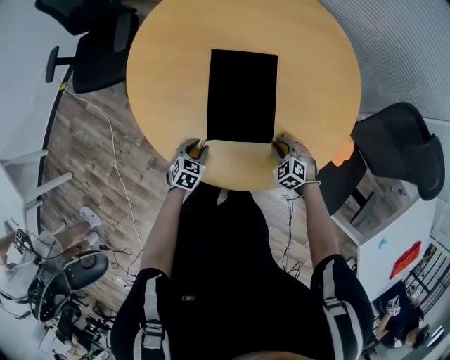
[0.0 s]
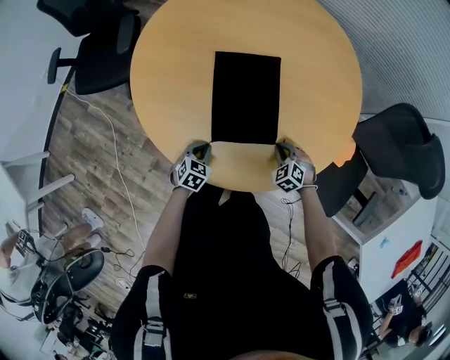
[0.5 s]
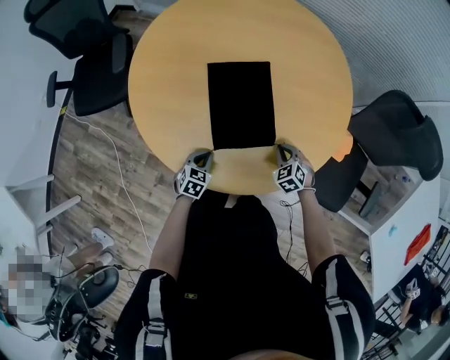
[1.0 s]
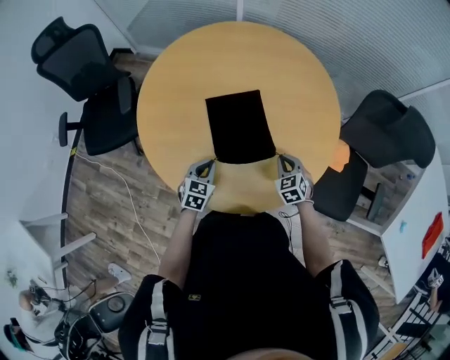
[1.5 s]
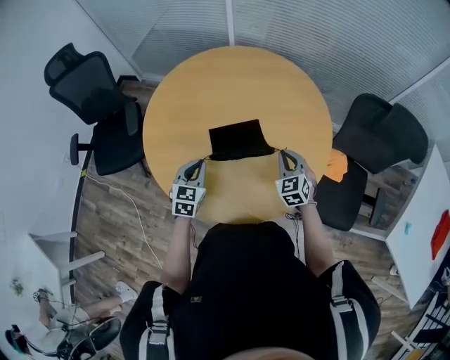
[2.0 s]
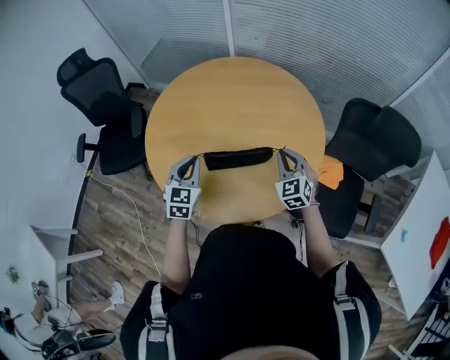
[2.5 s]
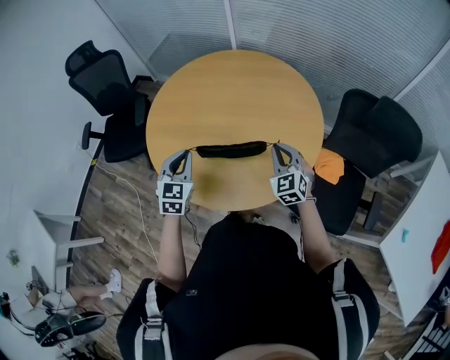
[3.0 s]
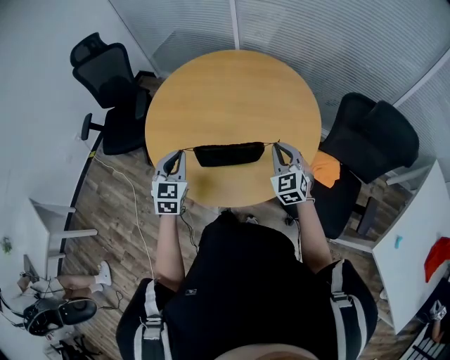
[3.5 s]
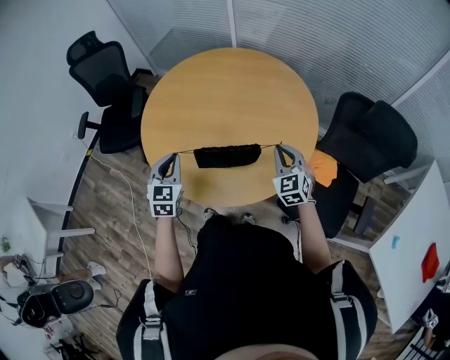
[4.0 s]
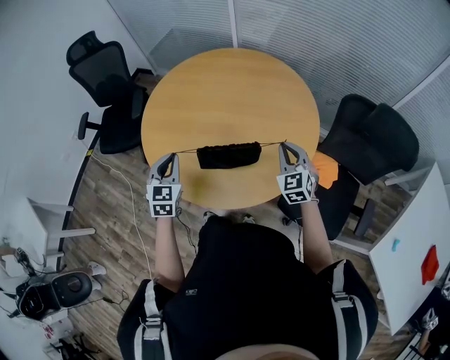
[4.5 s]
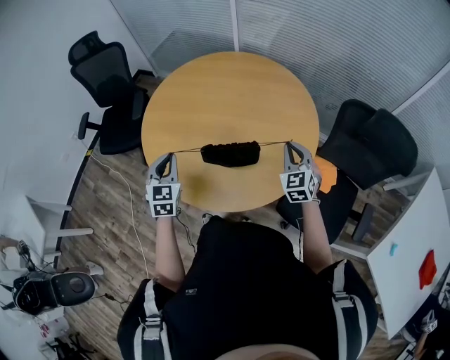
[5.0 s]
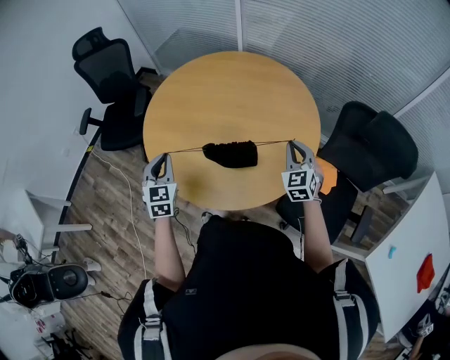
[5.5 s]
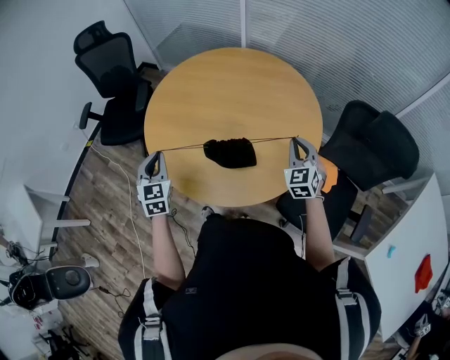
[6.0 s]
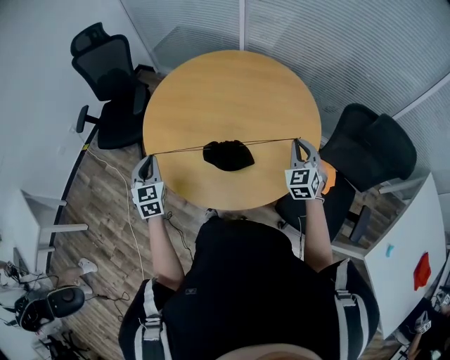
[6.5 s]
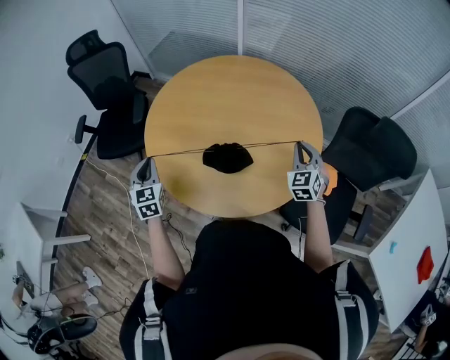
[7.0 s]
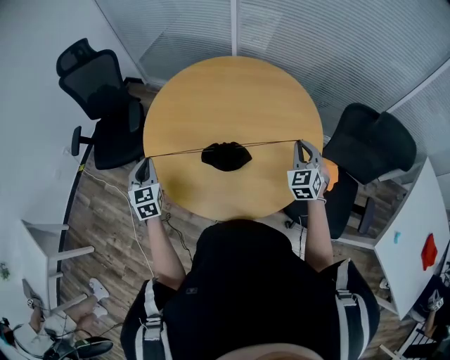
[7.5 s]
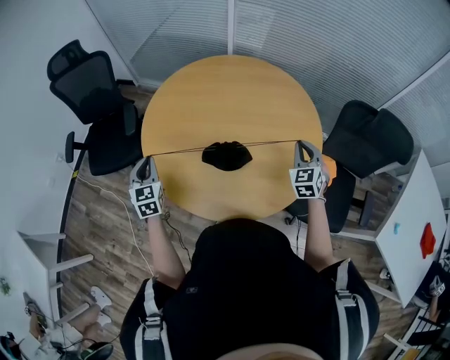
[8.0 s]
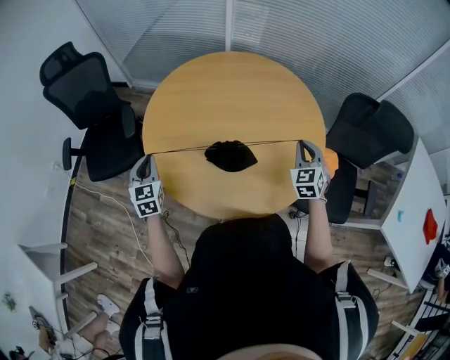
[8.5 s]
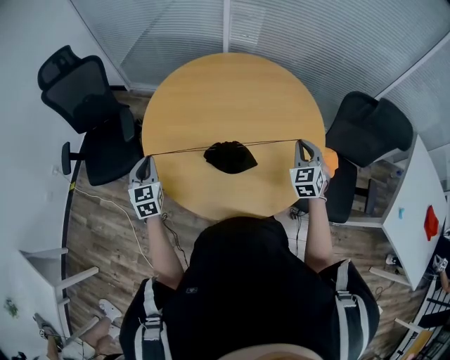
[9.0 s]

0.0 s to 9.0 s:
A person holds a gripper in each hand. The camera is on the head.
0.0 to 2.0 s: The left gripper travels upward and forward by about 25 cm, changes its angle by roughly 30 degrees, and closes up; the right gripper shifts about 20 cm upward, and swivels roughly 50 degrees.
2.0 to 4.5 s: The right gripper travels to the right and upward by some 10 cm, while the left gripper heads upward and backward, covering some 15 cm, and turns by approximately 20 degrees.
4.5 to 7.0 s: The left gripper shifts some 15 cm to the left.
7.0 to 9.0 s: The left gripper heads forward and to the left, covering some 10 cm; the right gripper goes about 5 cm to the left.

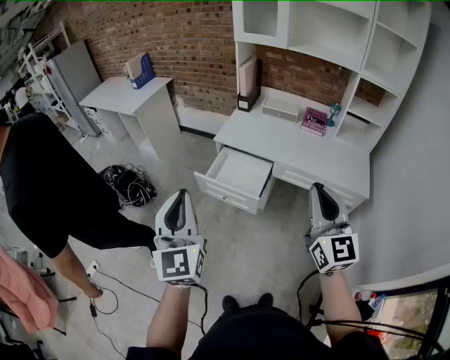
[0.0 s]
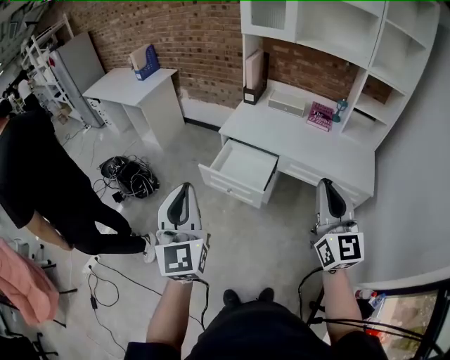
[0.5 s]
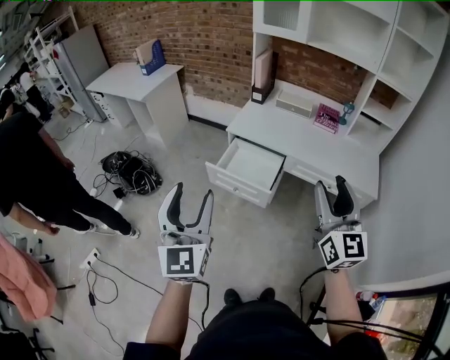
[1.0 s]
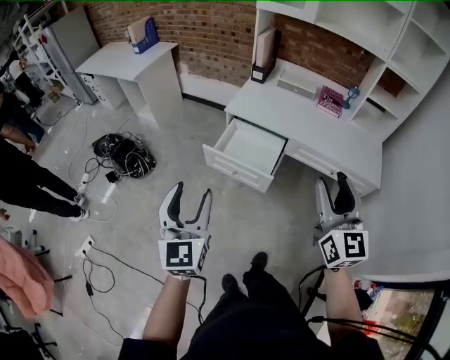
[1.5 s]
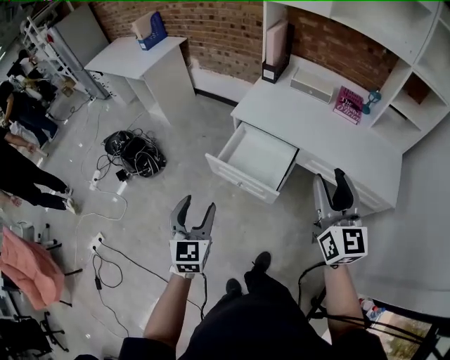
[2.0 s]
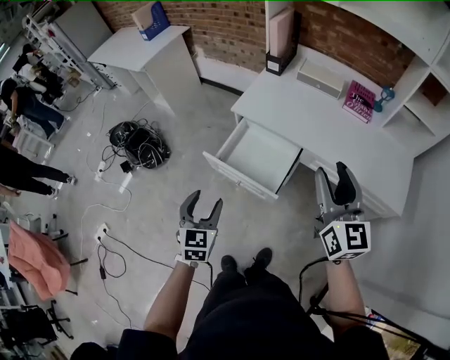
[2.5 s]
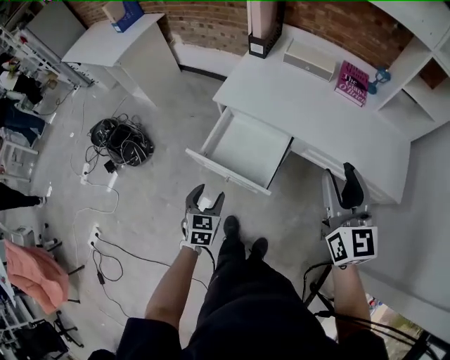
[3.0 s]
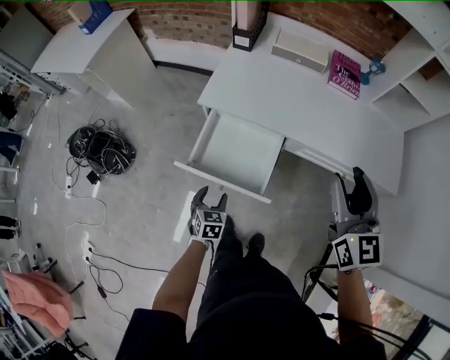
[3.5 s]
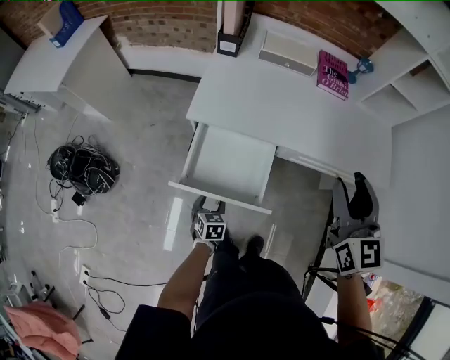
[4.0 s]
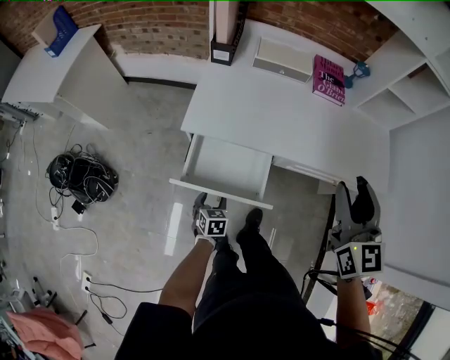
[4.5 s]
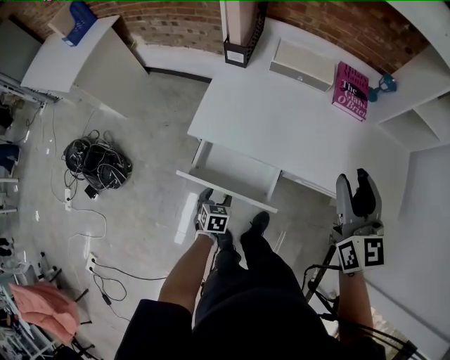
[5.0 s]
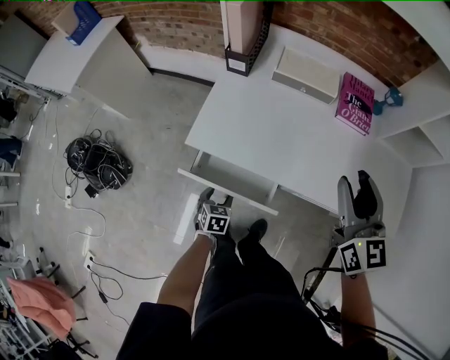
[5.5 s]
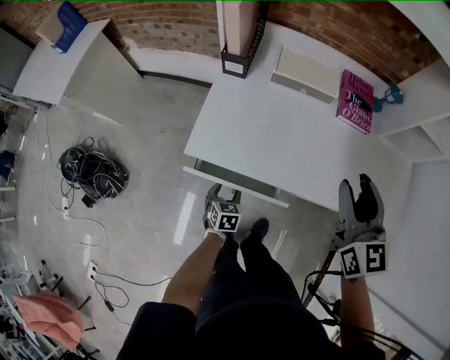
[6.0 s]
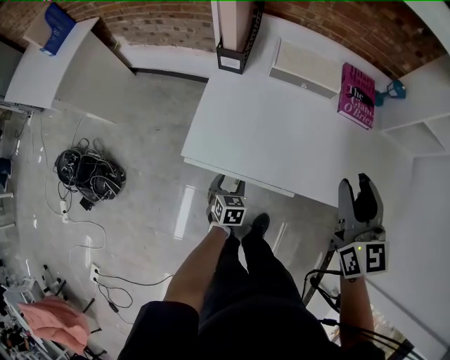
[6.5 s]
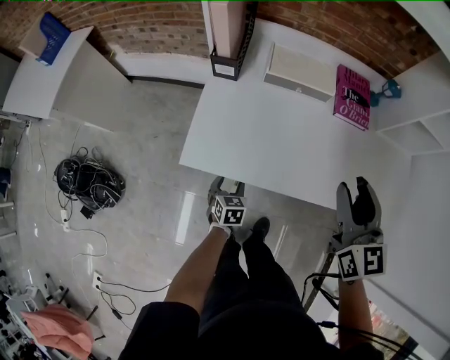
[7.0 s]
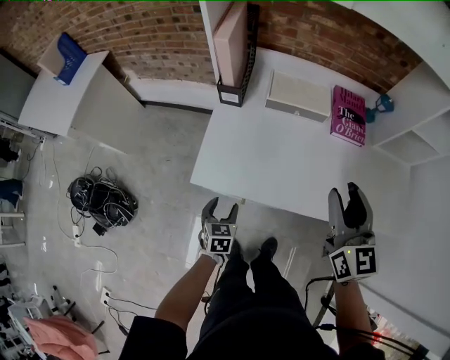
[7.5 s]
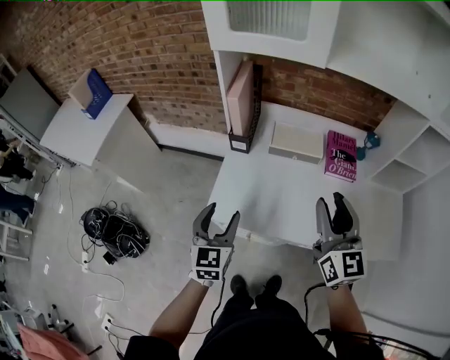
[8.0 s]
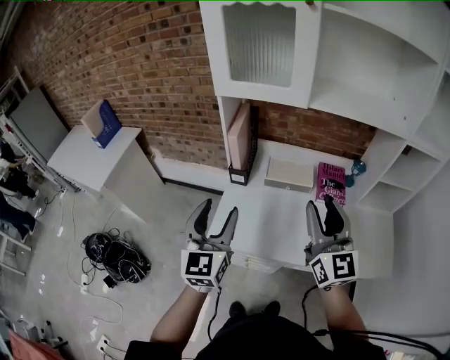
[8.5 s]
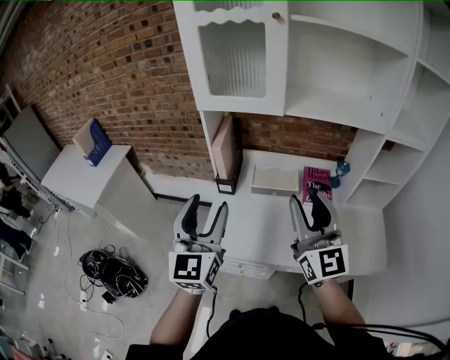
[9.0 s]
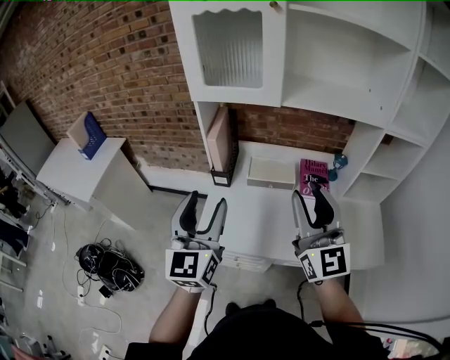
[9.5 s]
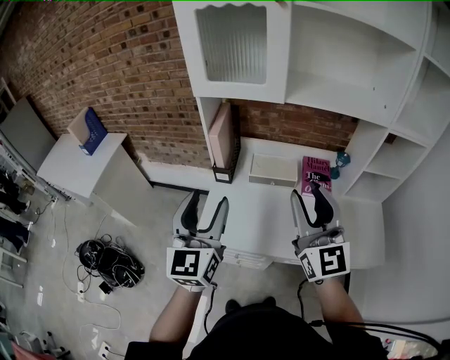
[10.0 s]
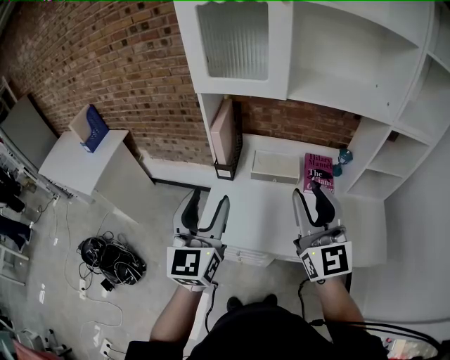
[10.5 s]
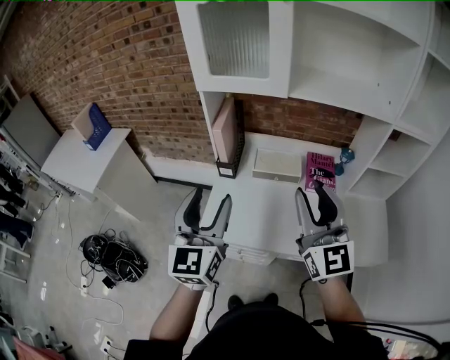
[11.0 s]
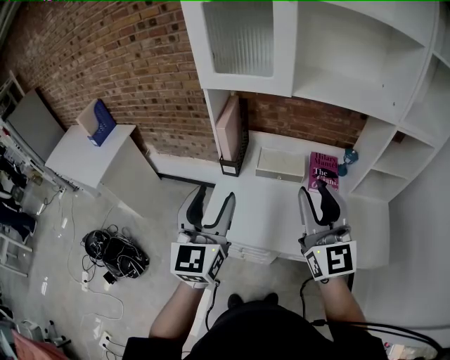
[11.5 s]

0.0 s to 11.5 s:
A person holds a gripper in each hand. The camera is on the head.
0.0 to 2.0 s: The left gripper goes some 25 cm downward and forward, changes its angle by roughly 20 degrees, and opens its fingers; the right gripper moves forward and downward, some 20 cm, and opens its fingers.
2.0 to 4.0 s: The right gripper is displaced forward and downward by about 20 cm, and turns by approximately 20 degrees; the left gripper moves downward and forward, approximately 40 cm, and points its fingers about 40 degrees further downward.
4.0 to 6.0 s: Both grippers travel together forward, roughly 20 cm.
6.0 to 7.5 s: The left gripper goes some 10 cm upward.
7.5 to 9.5 s: The right gripper travels upward by roughly 25 cm, and changes its angle by about 30 degrees; the left gripper shifts about 50 cm upward, and tips its fingers upward by about 50 degrees.
9.5 to 11.5 s: The grippers make only small movements.

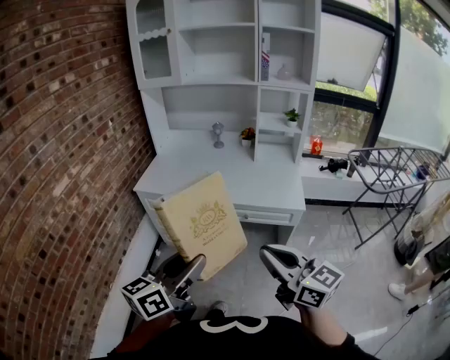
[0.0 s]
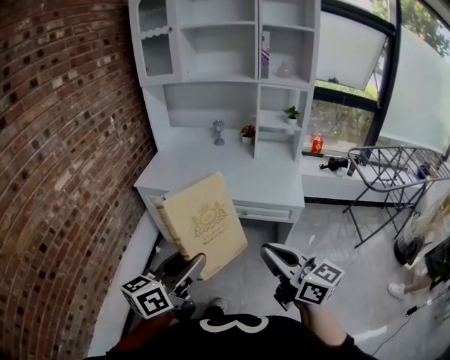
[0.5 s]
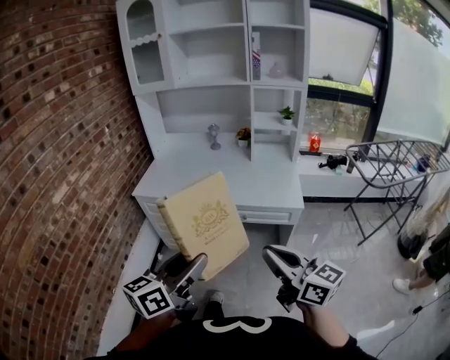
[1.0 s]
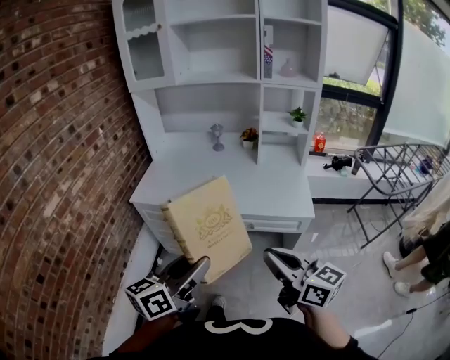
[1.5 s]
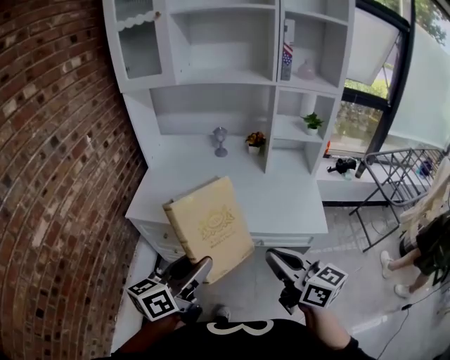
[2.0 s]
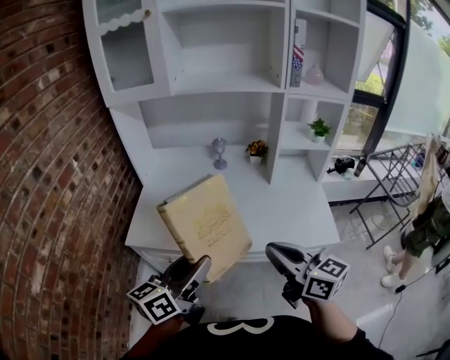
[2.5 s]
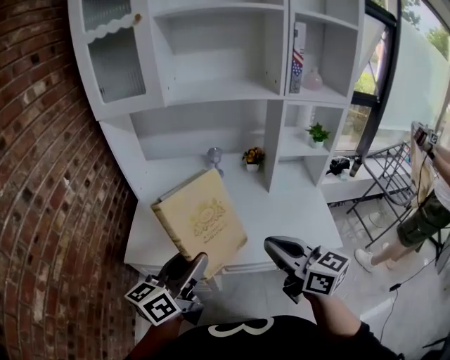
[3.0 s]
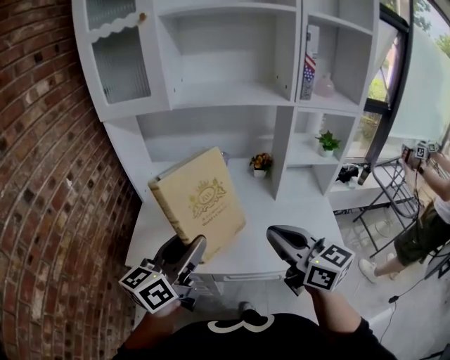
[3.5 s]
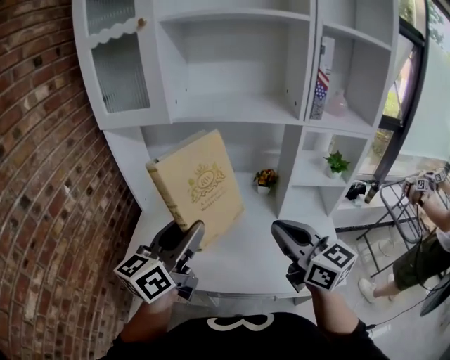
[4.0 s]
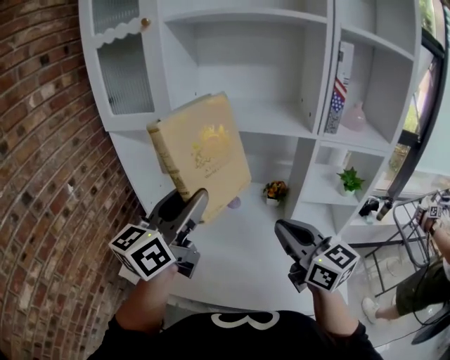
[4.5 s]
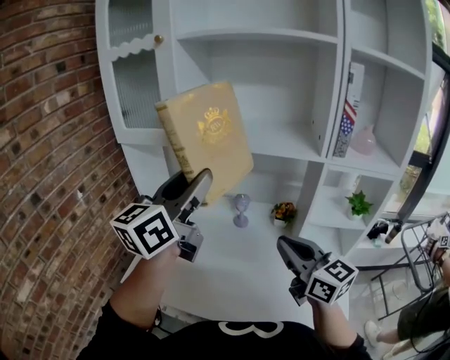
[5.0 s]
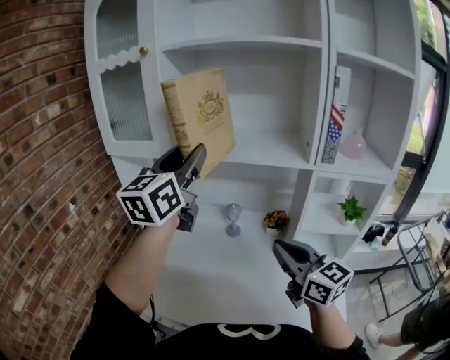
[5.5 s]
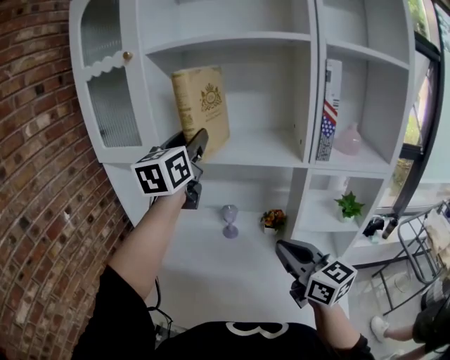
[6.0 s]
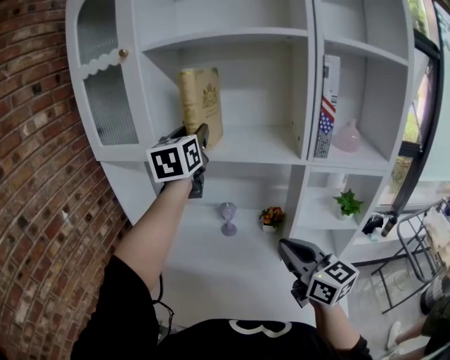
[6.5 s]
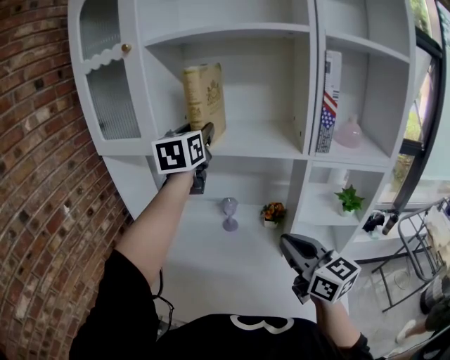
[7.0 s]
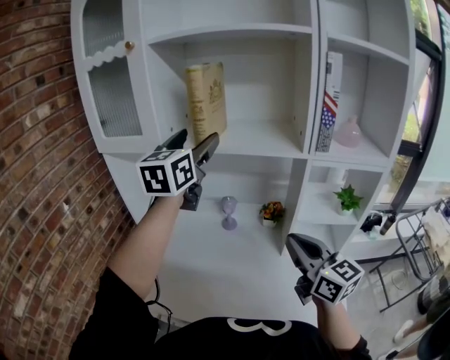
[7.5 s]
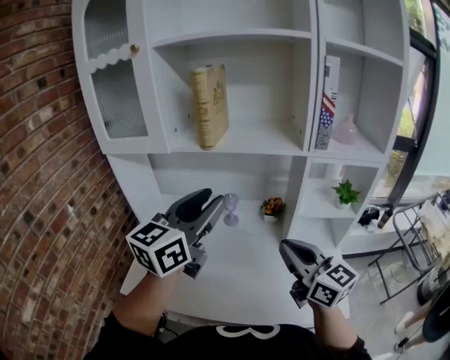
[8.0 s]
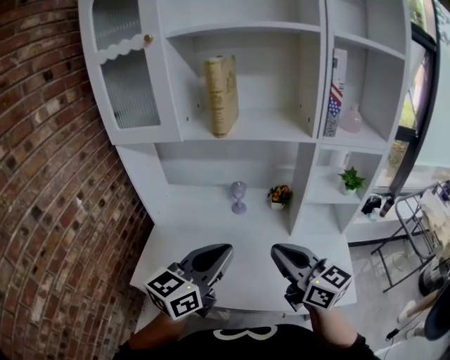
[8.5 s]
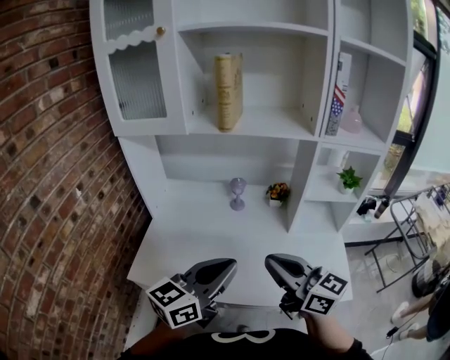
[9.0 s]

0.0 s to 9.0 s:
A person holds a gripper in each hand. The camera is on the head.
0.0 to 2.0 s: The two grippers go some 20 cm forward.
2.0 to 4.5 s: The right gripper is displaced forward by about 35 cm. Meanwhile the left gripper goes some 40 cm forward and upward, and rotates roughly 30 degrees.
4.5 to 7.0 s: The right gripper shifts about 5 cm to the right, while the left gripper moves forward, roughly 25 cm, and rotates about 30 degrees.
7.0 to 9.0 s: The right gripper is displaced backward and to the left by approximately 15 cm; the left gripper shifts roughly 40 cm backward and downward, turns by roughly 40 degrees, and closes its fingers.
